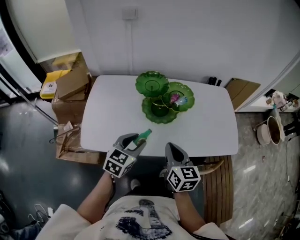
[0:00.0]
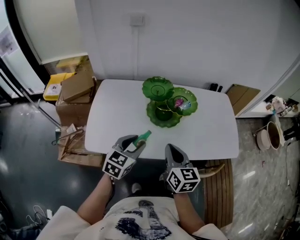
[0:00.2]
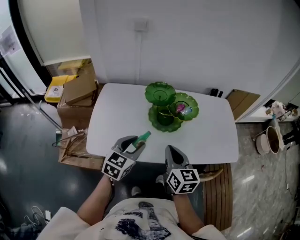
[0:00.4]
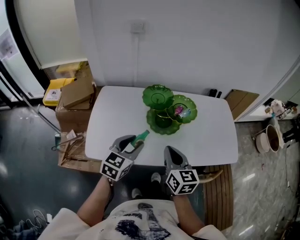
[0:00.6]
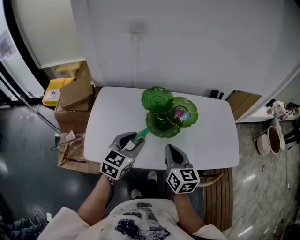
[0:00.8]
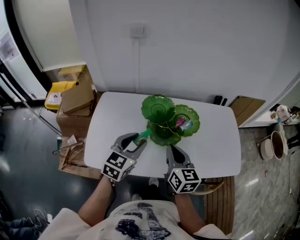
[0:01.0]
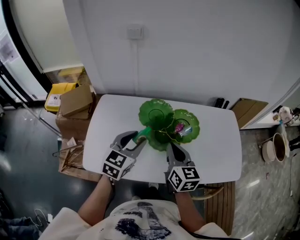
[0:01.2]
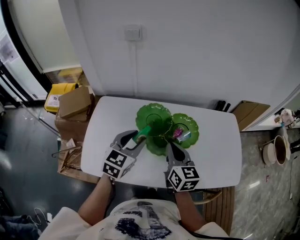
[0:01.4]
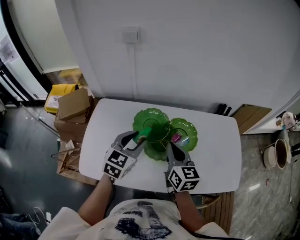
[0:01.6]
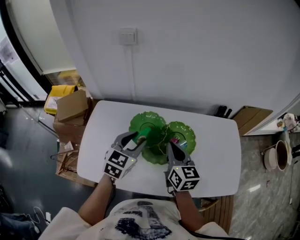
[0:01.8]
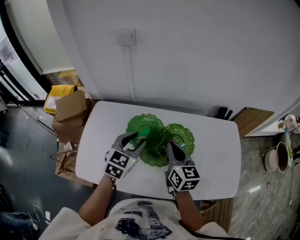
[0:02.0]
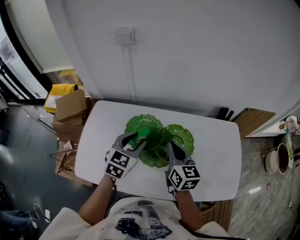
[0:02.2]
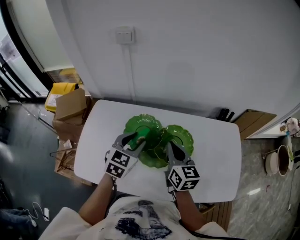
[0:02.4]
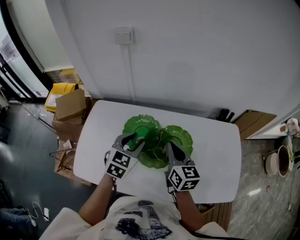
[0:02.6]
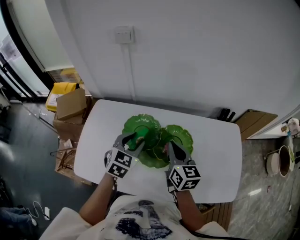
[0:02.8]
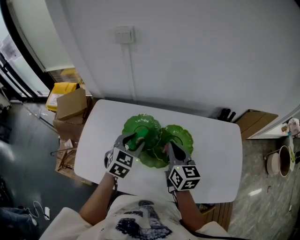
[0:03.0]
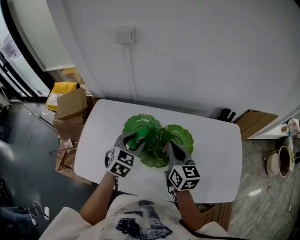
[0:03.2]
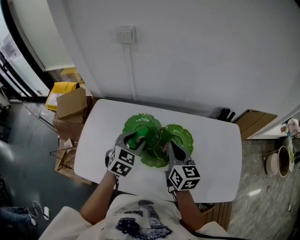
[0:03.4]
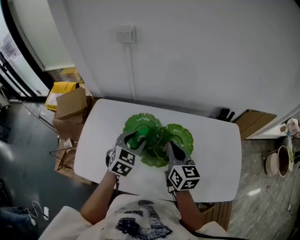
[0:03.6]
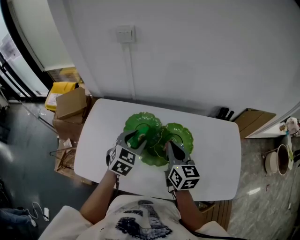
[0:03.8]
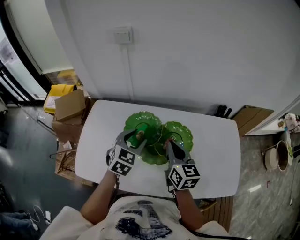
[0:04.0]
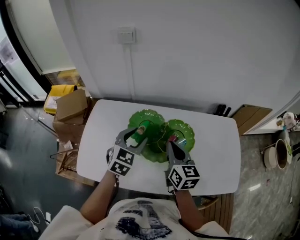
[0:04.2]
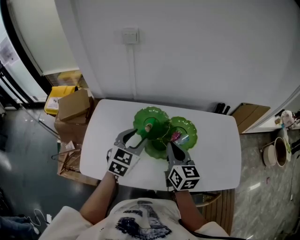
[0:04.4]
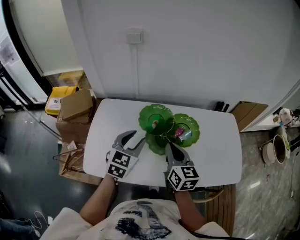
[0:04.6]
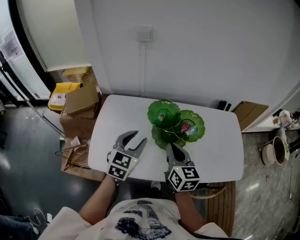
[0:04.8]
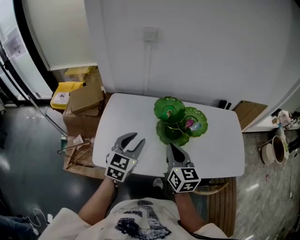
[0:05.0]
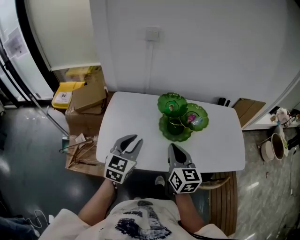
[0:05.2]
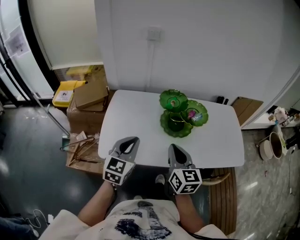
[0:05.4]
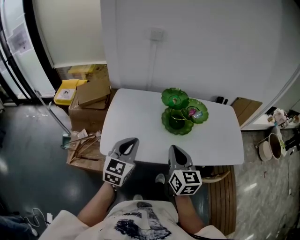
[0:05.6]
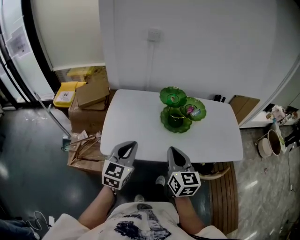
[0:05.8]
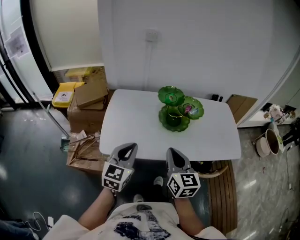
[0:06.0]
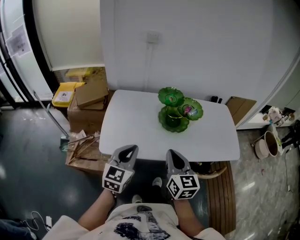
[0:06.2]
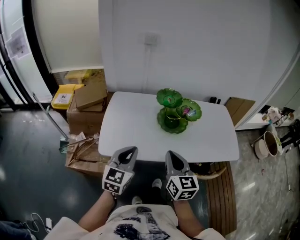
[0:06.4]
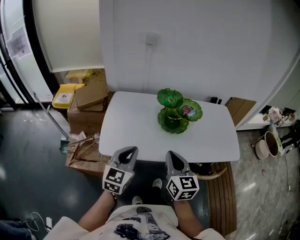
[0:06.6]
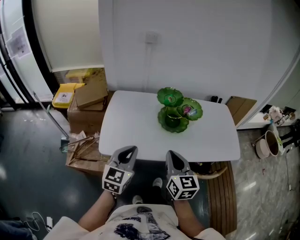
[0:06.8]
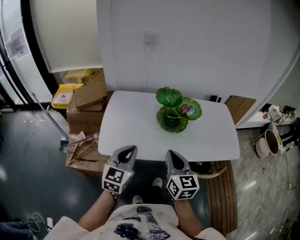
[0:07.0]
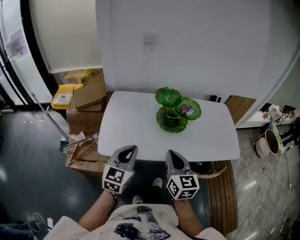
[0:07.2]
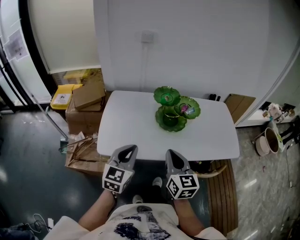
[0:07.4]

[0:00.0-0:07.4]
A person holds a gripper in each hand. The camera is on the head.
0:00.0 to 0:01.4: The right gripper travels forward by some 20 cm, while the left gripper is displaced forward and upward by approximately 20 cm.
0:01.4 to 0:03.0: The right gripper travels forward and to the right by approximately 10 cm. The left gripper shifts about 10 cm forward and downward.
0:03.0 to 0:04.4: The right gripper is displaced backward by approximately 5 cm; the left gripper ends up roughly 5 cm from where it was.
0:04.4 to 0:06.0: Both grippers travel together backward and to the left, some 30 cm. The left gripper closes its fingers.
0:06.0 to 0:07.4: The grippers move only a little.

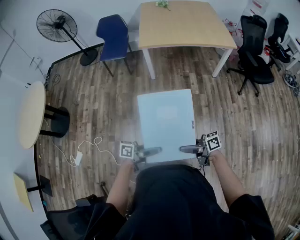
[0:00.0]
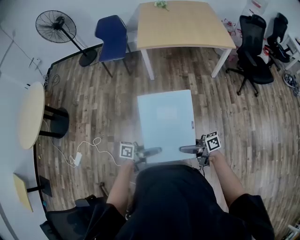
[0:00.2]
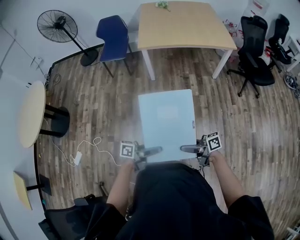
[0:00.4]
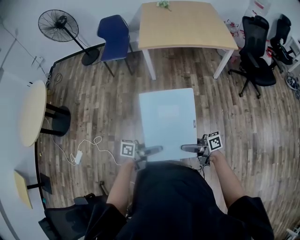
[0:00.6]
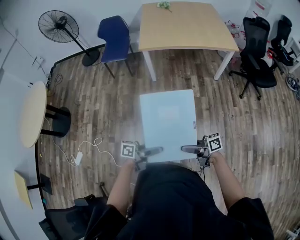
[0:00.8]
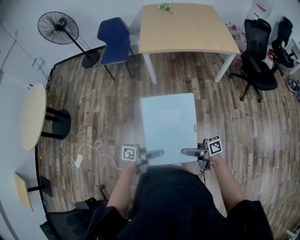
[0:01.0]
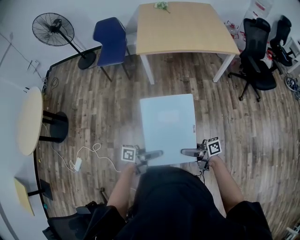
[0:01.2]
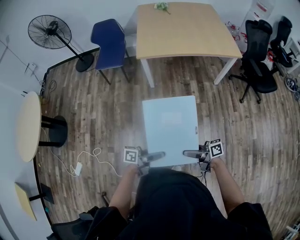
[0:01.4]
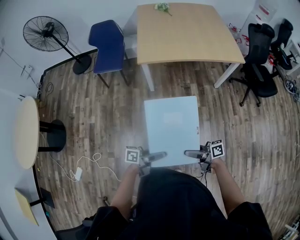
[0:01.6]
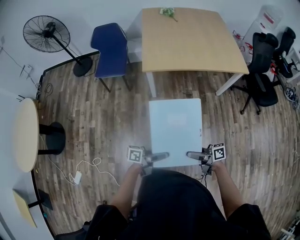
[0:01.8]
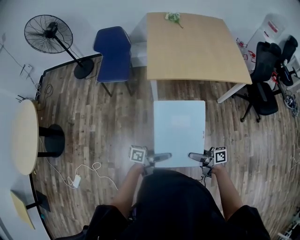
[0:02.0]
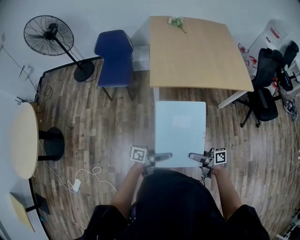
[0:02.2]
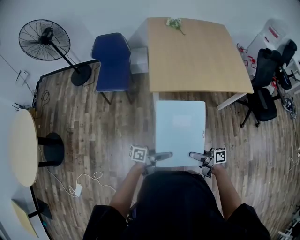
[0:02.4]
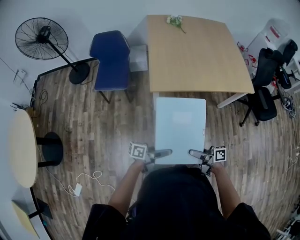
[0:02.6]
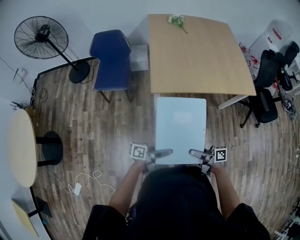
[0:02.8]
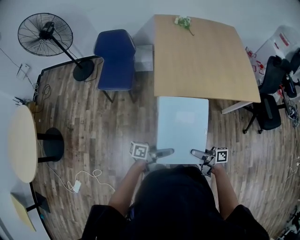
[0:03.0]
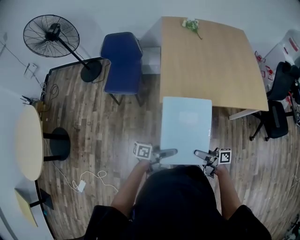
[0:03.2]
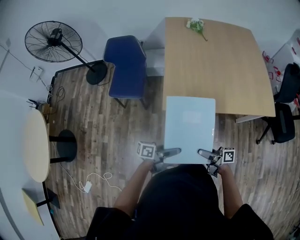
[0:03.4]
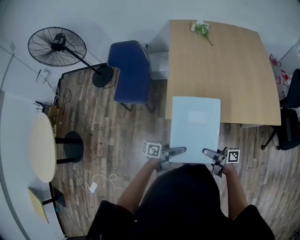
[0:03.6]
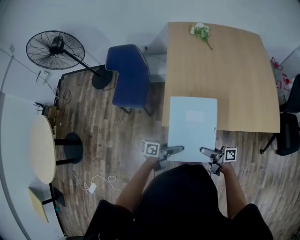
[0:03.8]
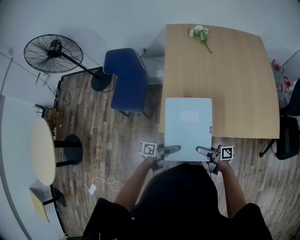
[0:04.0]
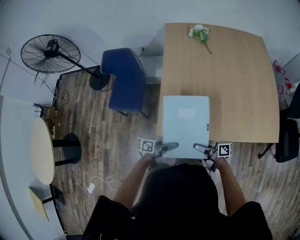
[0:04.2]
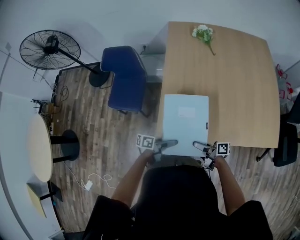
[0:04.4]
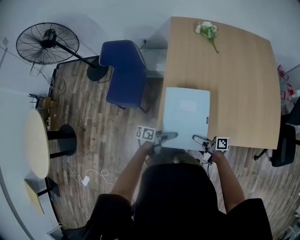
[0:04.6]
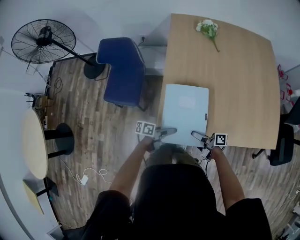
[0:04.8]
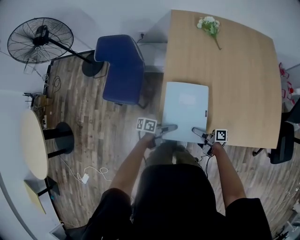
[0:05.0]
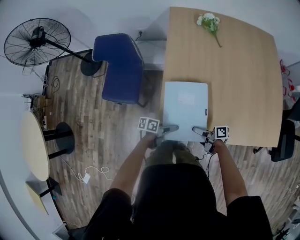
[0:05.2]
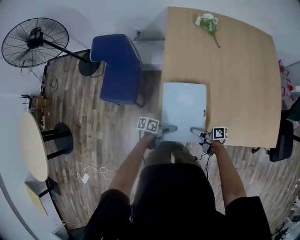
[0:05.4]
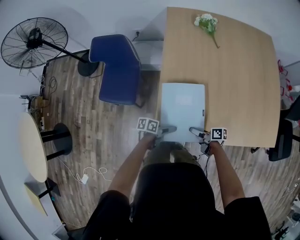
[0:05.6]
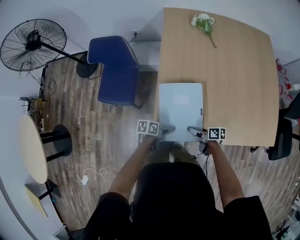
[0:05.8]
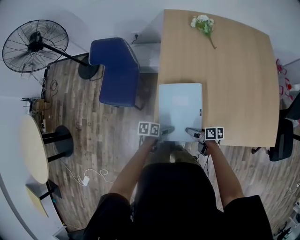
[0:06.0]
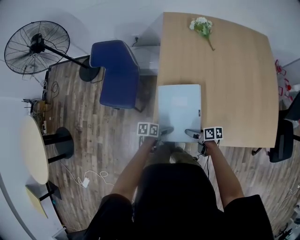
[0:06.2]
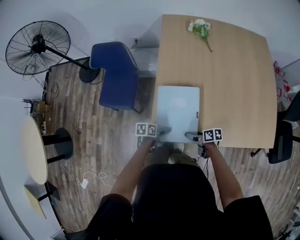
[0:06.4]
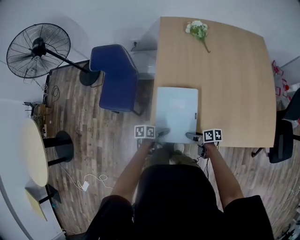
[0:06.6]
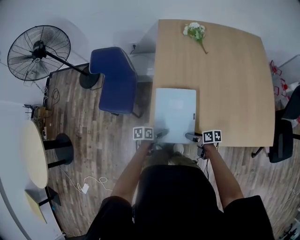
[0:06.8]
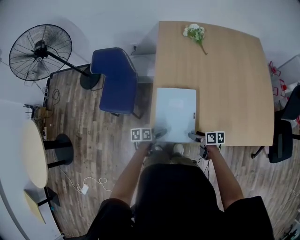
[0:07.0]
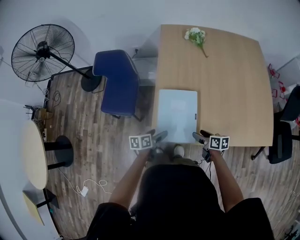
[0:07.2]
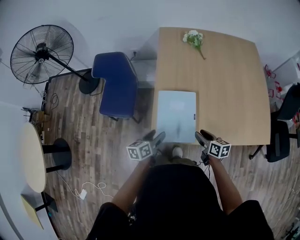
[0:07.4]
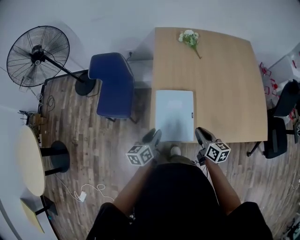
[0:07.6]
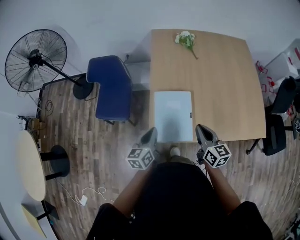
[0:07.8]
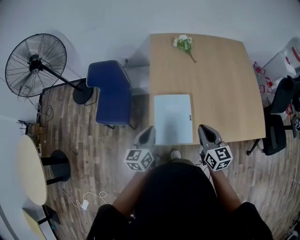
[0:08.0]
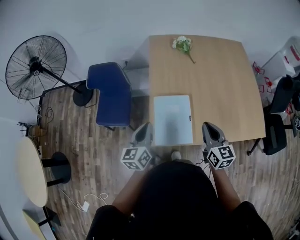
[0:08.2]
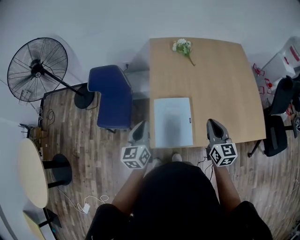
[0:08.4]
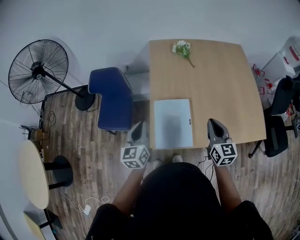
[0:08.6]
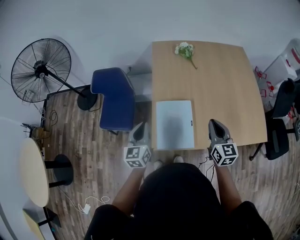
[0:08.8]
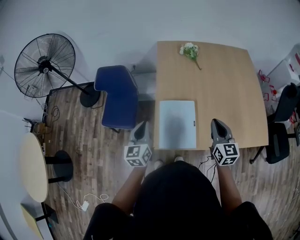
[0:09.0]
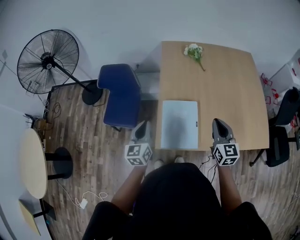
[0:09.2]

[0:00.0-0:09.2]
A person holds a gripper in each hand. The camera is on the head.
0:00.0 to 0:01.6: The left gripper moves some 25 cm. Meanwhile the right gripper moves about 25 cm.
0:01.6 to 0:03.0: The right gripper changes place by roughly 35 cm, while the left gripper changes place by approximately 40 cm.
0:03.0 to 0:04.6: The two grippers travel together, some 40 cm.
0:04.6 to 0:06.2: Both grippers move downward, some 10 cm. The left gripper tips its fingers downward by approximately 30 degrees, while the right gripper points its fingers approximately 30 degrees further downward.
0:06.2 to 0:07.6: Both grippers move upward, roughly 20 cm. The left gripper rotates some 40 degrees, and closes its fingers; the right gripper turns by some 40 degrees, and closes its fingers.
0:07.6 to 0:09.2: The right gripper moves upward, approximately 15 cm, and rotates roughly 40 degrees. The left gripper is displaced upward and to the left by about 15 cm, and turns by about 30 degrees.

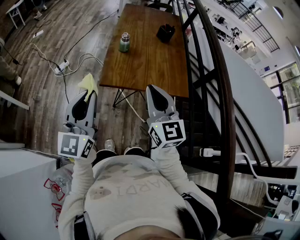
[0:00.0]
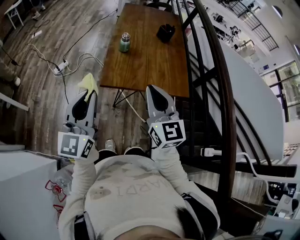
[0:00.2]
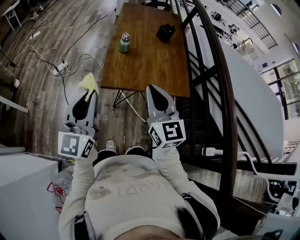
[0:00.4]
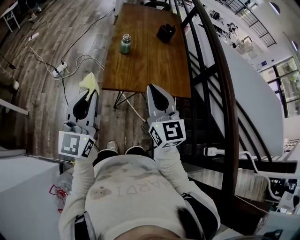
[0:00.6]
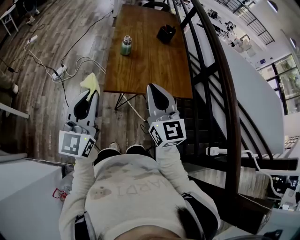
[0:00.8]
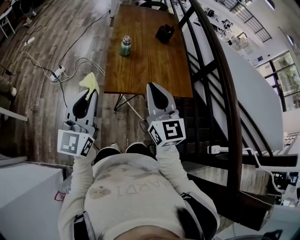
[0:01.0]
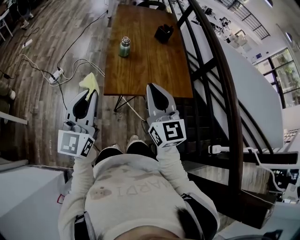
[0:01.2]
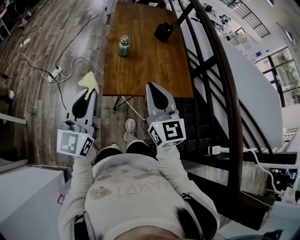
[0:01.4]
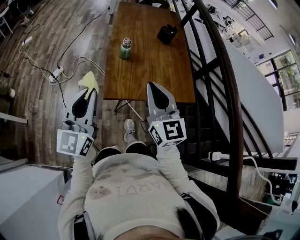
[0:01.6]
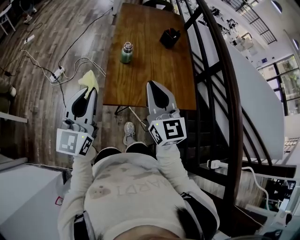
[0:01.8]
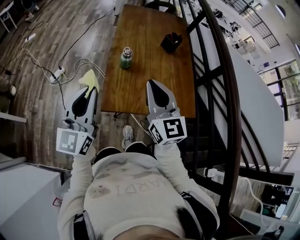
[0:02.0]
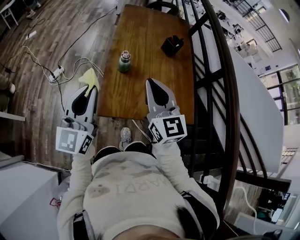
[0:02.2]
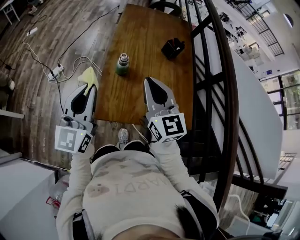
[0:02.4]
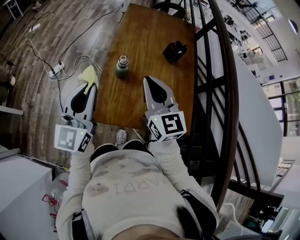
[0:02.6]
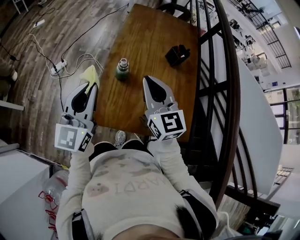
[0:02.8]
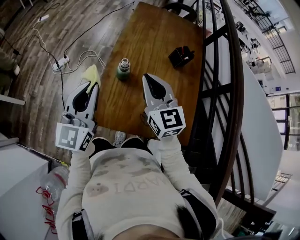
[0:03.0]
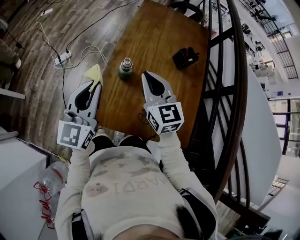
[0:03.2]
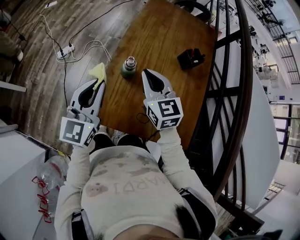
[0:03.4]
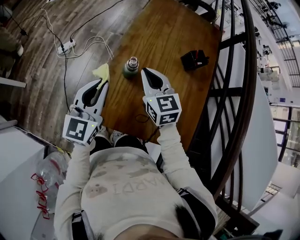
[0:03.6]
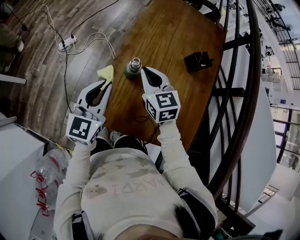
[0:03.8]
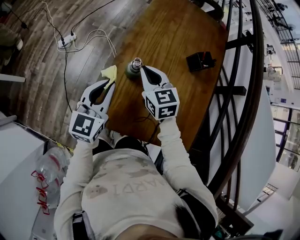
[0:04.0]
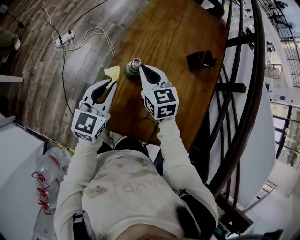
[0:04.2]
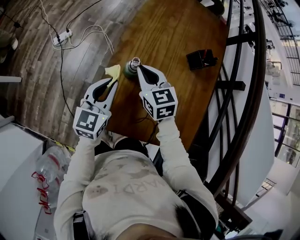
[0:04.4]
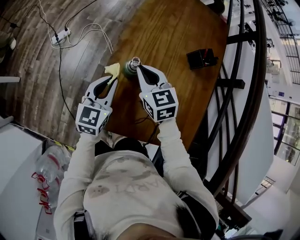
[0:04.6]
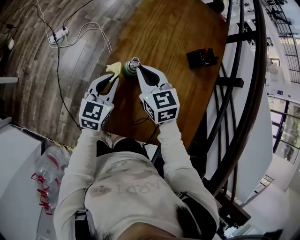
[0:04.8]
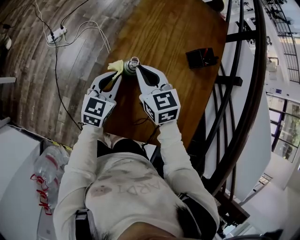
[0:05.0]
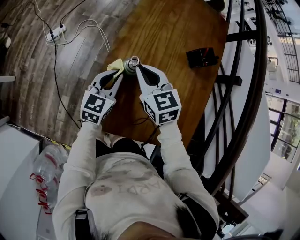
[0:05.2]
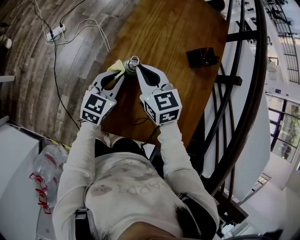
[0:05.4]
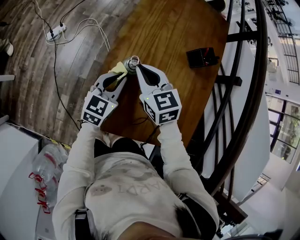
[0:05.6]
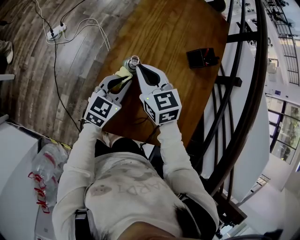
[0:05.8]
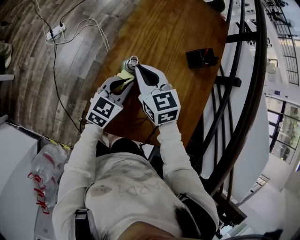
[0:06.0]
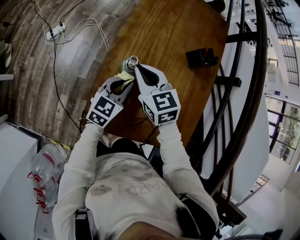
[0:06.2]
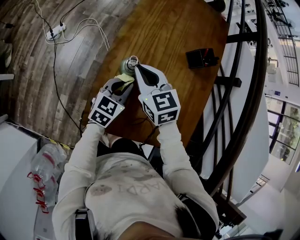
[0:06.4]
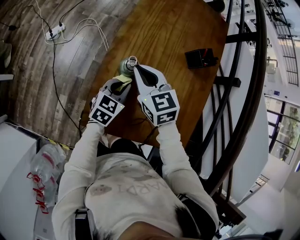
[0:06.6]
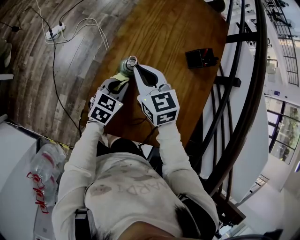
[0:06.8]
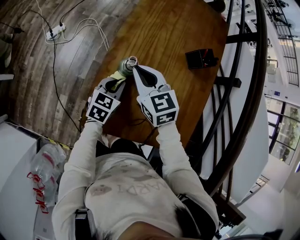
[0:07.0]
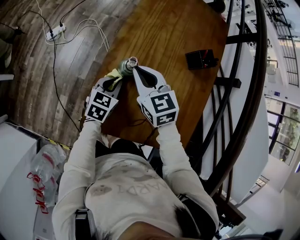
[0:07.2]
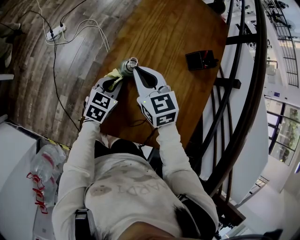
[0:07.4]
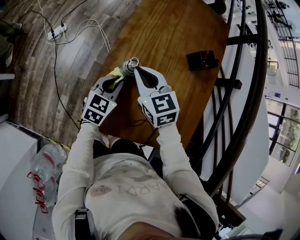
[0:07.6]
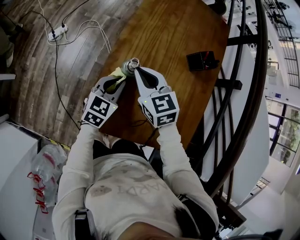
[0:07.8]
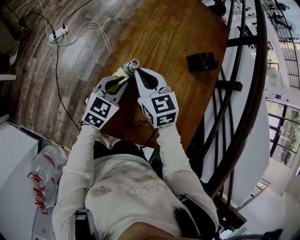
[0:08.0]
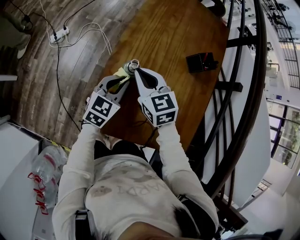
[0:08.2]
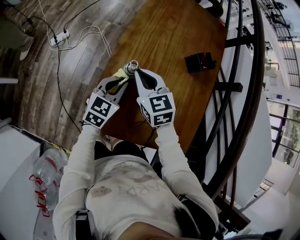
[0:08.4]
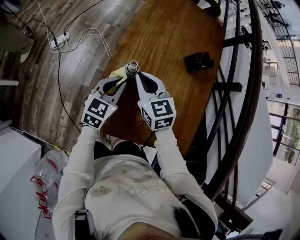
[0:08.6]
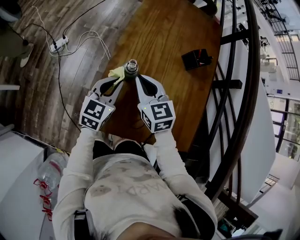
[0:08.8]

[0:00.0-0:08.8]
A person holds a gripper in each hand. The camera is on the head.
0:00.0 to 0:01.4: Both grippers travel together forward and to the left, about 10 cm.
0:01.4 to 0:03.0: The grippers both shift forward by about 30 cm. The right gripper changes its angle by some 20 degrees.
0:03.0 to 0:04.4: Both grippers move downward and forward, roughly 20 cm. The right gripper swivels about 20 degrees.
0:04.4 to 0:05.8: The left gripper goes about 10 cm downward and to the right.
0:05.8 to 0:07.4: The left gripper moves downward, roughly 5 cm.
0:07.4 to 0:08.8: The left gripper is displaced upward by roughly 10 cm.
